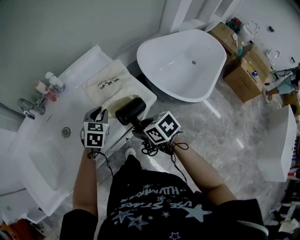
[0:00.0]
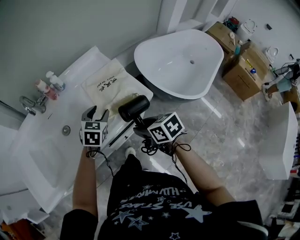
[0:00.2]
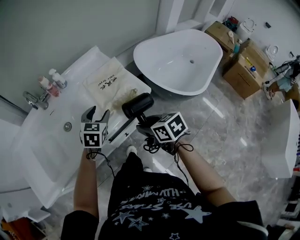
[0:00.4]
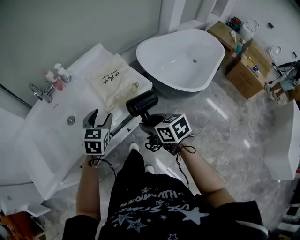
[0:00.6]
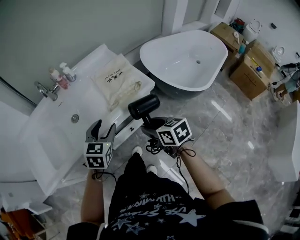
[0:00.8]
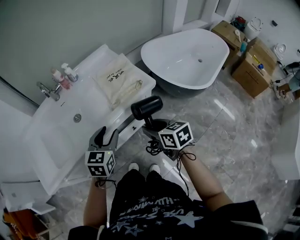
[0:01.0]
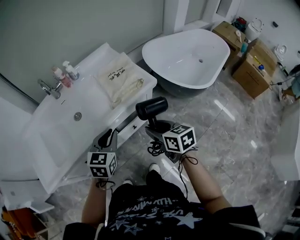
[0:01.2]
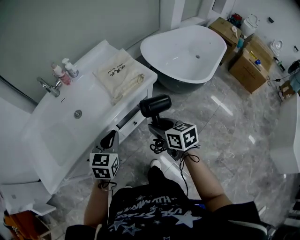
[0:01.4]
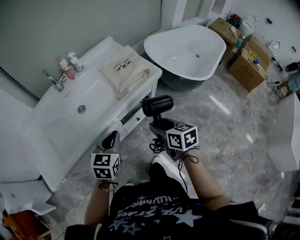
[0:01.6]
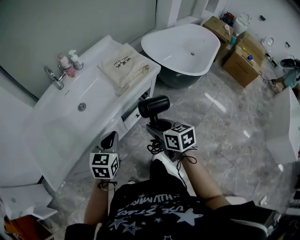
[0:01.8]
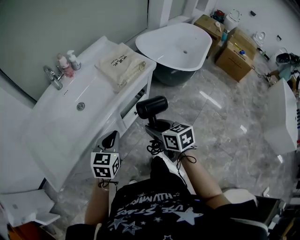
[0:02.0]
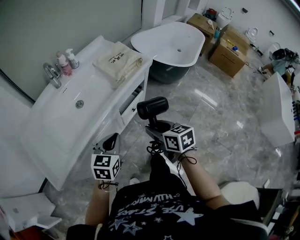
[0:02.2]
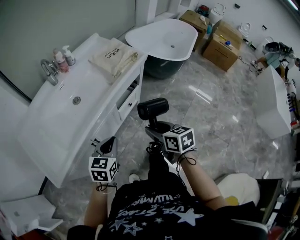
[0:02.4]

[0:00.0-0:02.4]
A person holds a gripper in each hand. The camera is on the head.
0:00.0 to 0:01.2: The left gripper travels backward by about 25 cm, and opens, then closes again. Meanwhile the right gripper shifts approximately 15 cm backward, and rotates approximately 30 degrees.
0:01.2 to 0:02.4: The two grippers go some 25 cm backward and to the left.

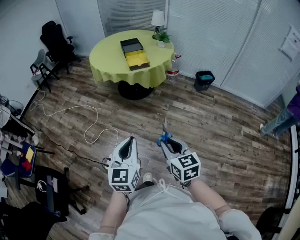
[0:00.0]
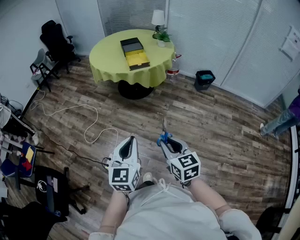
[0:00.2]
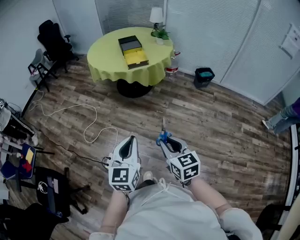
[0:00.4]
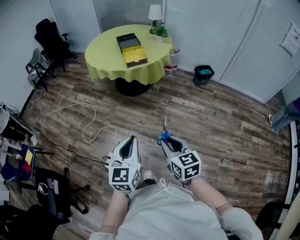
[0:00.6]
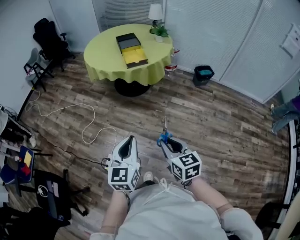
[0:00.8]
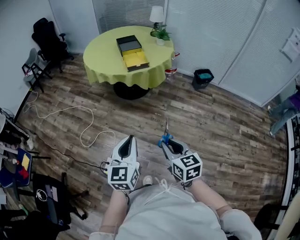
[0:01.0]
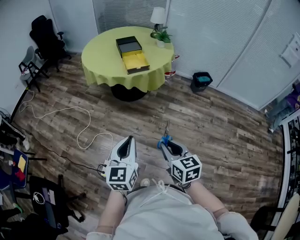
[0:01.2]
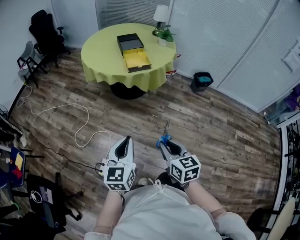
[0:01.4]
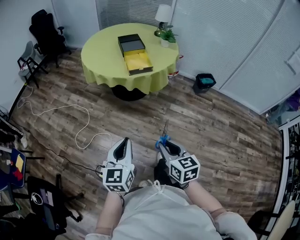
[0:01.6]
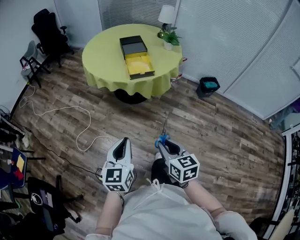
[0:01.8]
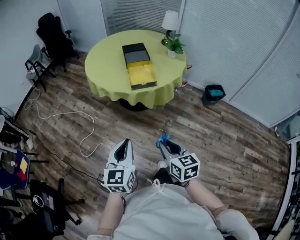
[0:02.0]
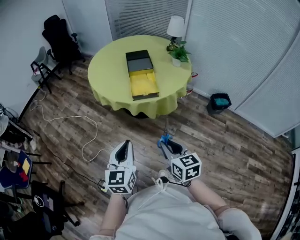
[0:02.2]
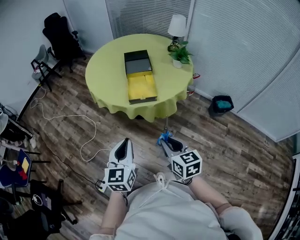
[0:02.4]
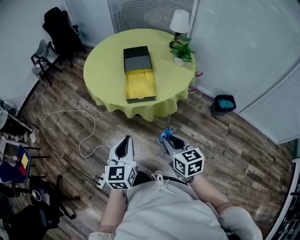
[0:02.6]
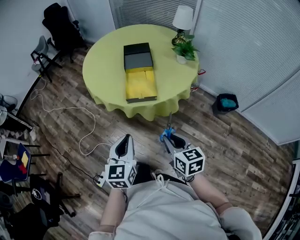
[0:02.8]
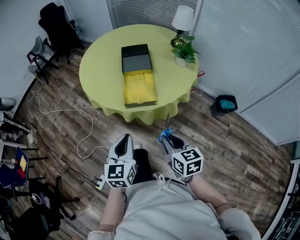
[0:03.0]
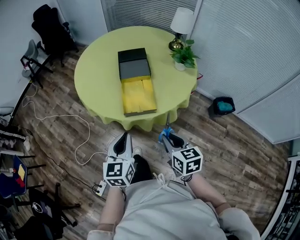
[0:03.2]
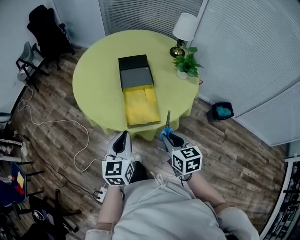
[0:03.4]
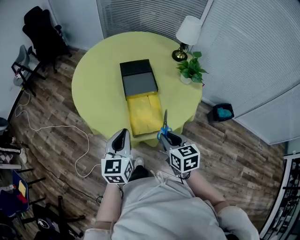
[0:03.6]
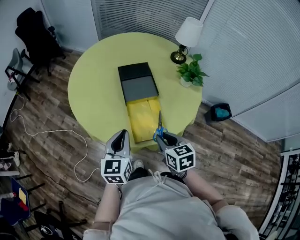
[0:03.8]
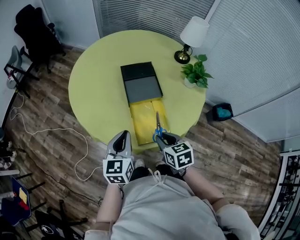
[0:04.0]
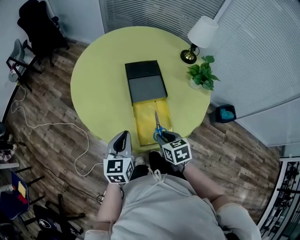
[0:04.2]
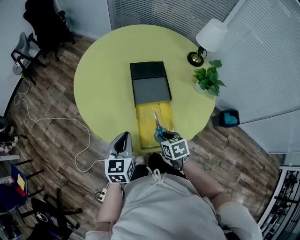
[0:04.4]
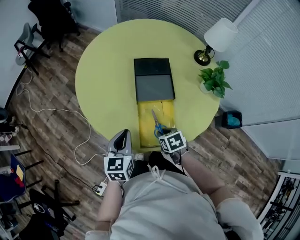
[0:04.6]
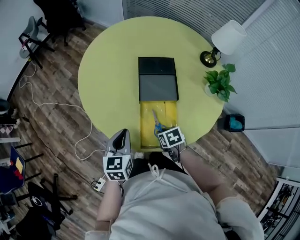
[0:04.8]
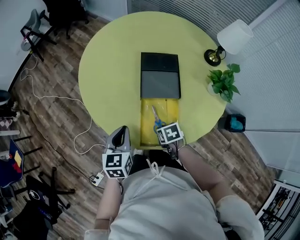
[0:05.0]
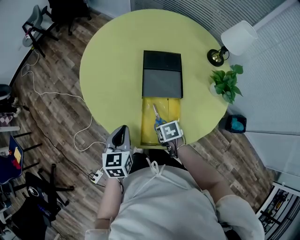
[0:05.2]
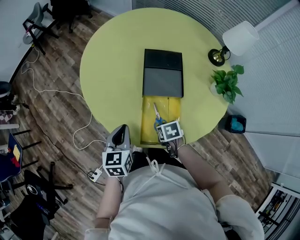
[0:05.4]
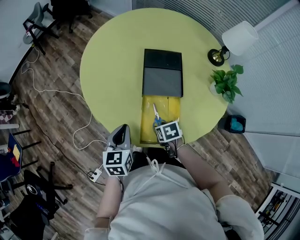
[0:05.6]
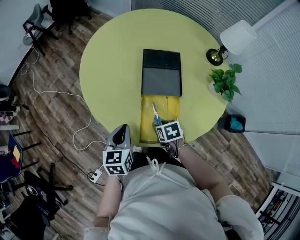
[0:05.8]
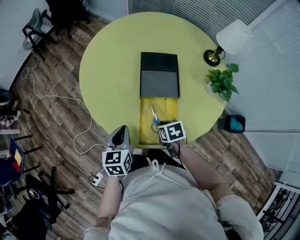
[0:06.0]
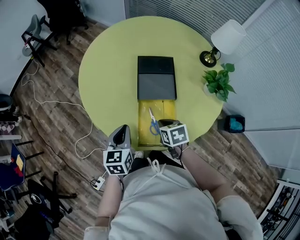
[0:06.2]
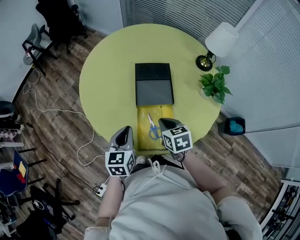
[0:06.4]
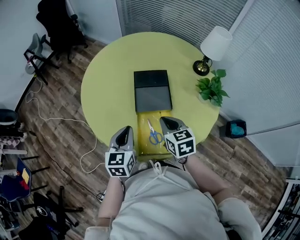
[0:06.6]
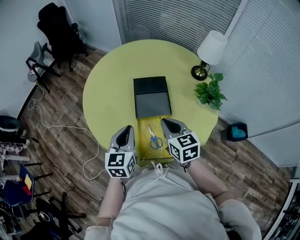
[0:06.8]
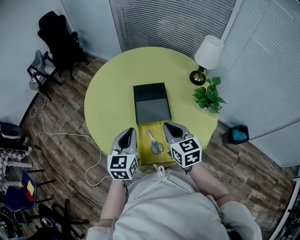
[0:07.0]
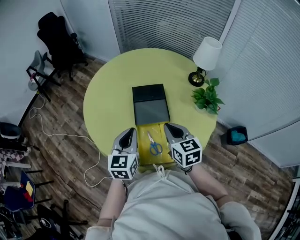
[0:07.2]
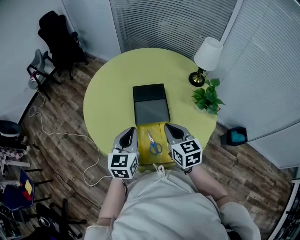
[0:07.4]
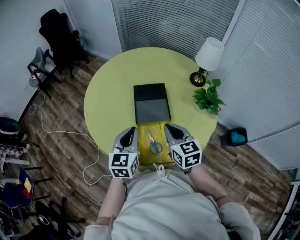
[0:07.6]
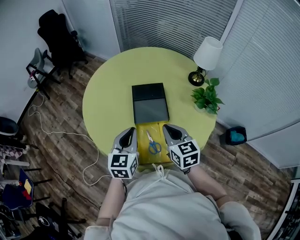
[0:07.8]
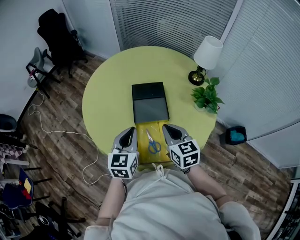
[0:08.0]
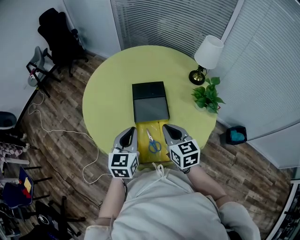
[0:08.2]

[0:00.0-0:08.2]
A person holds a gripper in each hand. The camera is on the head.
0:00.0 to 0:01.6: The two grippers go approximately 20 cm forward.
0:01.6 to 0:03.2: The two grippers travel together, forward and to the right, approximately 50 cm.
0:03.2 to 0:05.0: The right gripper moves roughly 35 cm, and points its fingers about 40 degrees further downward, while the left gripper shifts by roughly 30 cm.
0:05.0 to 0:06.6: The left gripper moves upward, some 5 cm; the right gripper is displaced upward by approximately 20 cm, tips its fingers upward by approximately 40 degrees, and opens, then closes once more.
0:06.6 to 0:08.2: The right gripper changes place by some 5 cm. The left gripper shifts by some 5 cm.

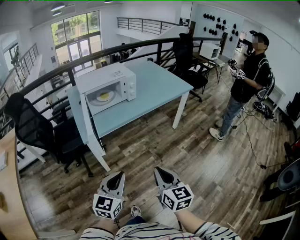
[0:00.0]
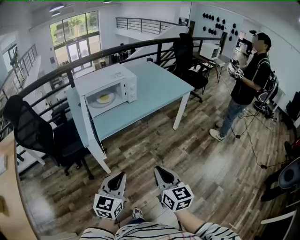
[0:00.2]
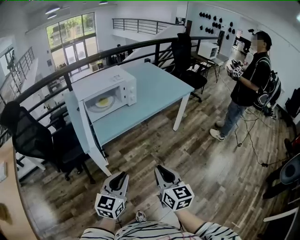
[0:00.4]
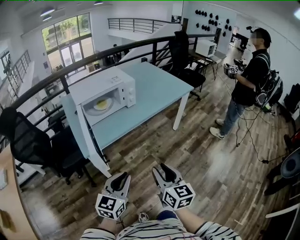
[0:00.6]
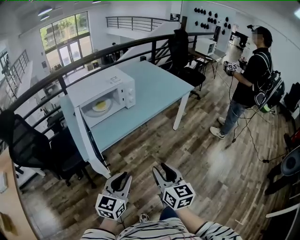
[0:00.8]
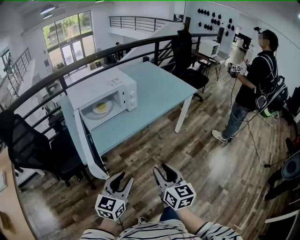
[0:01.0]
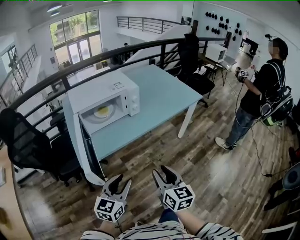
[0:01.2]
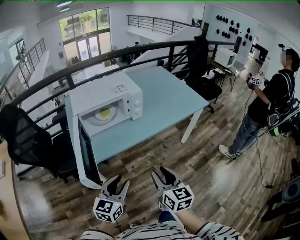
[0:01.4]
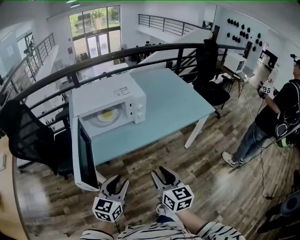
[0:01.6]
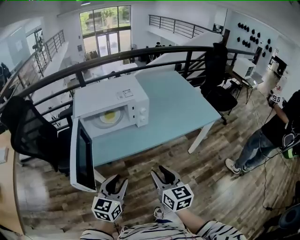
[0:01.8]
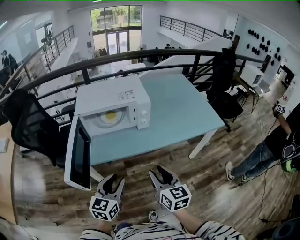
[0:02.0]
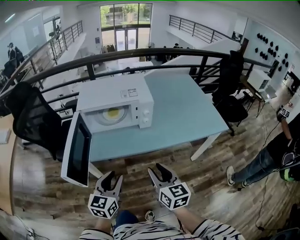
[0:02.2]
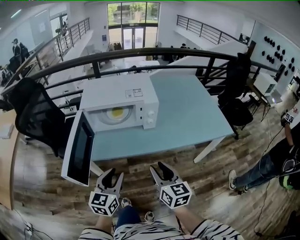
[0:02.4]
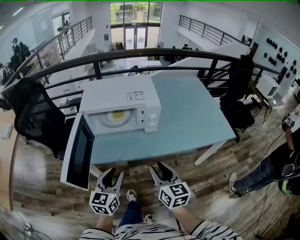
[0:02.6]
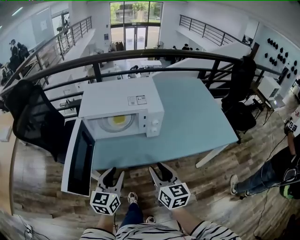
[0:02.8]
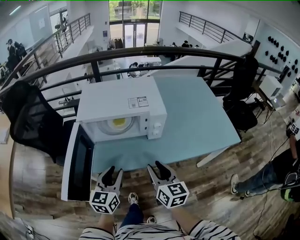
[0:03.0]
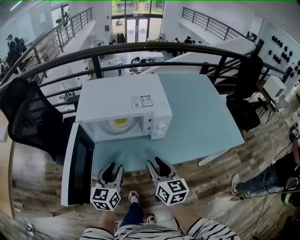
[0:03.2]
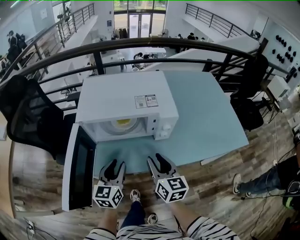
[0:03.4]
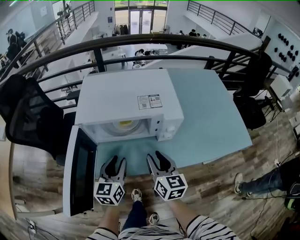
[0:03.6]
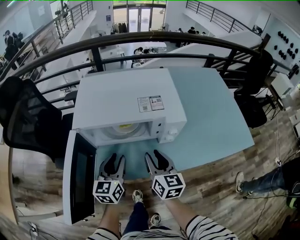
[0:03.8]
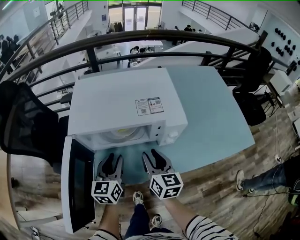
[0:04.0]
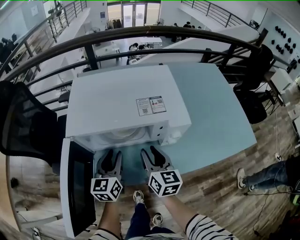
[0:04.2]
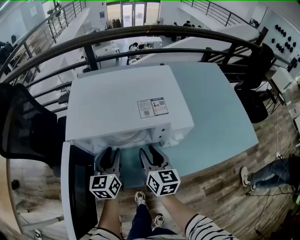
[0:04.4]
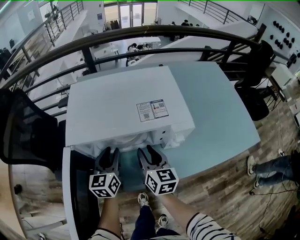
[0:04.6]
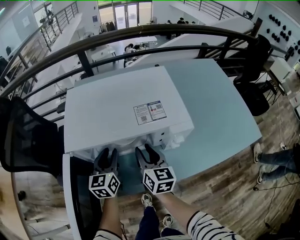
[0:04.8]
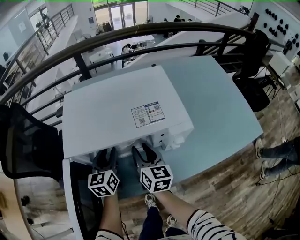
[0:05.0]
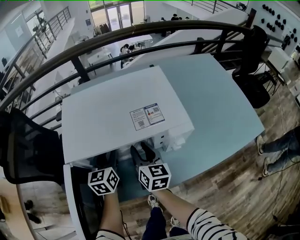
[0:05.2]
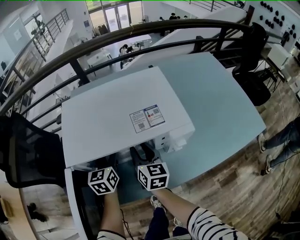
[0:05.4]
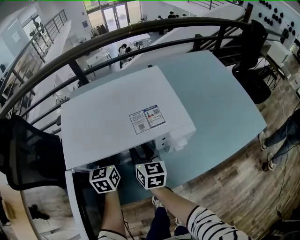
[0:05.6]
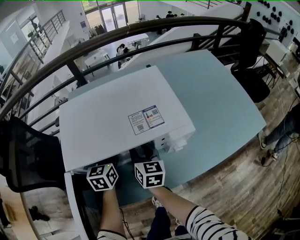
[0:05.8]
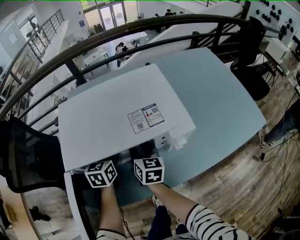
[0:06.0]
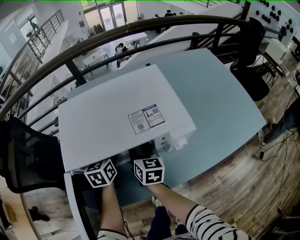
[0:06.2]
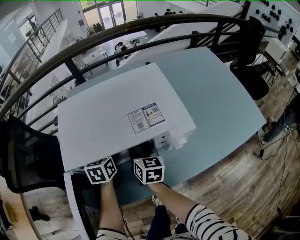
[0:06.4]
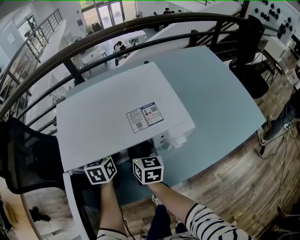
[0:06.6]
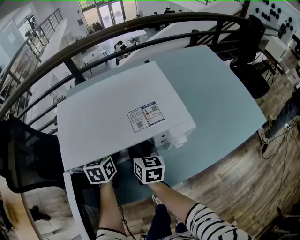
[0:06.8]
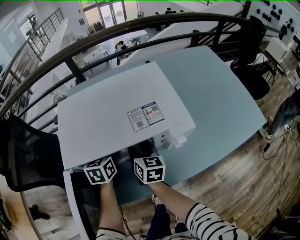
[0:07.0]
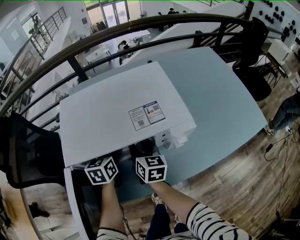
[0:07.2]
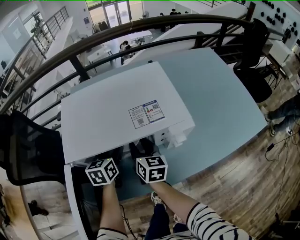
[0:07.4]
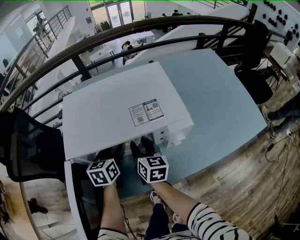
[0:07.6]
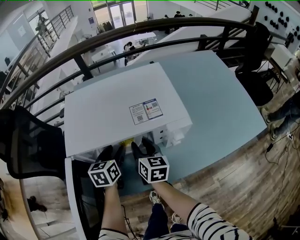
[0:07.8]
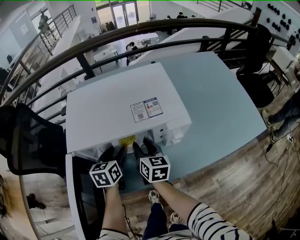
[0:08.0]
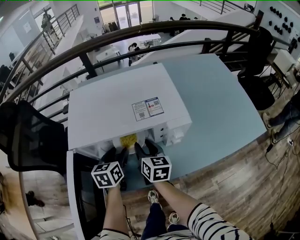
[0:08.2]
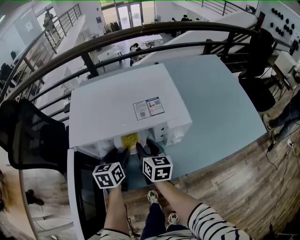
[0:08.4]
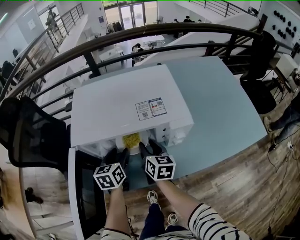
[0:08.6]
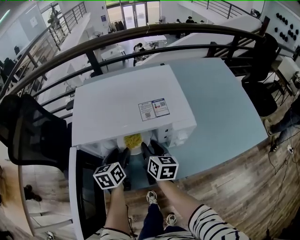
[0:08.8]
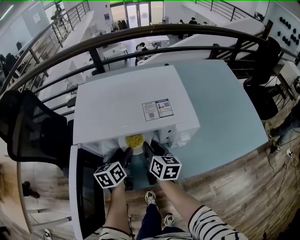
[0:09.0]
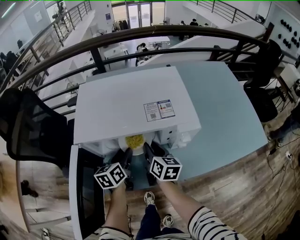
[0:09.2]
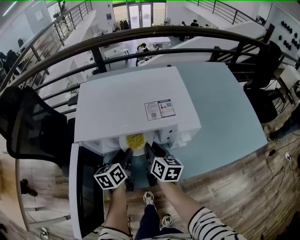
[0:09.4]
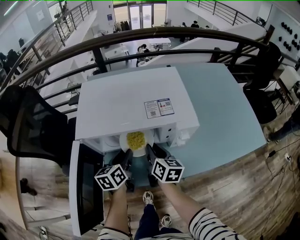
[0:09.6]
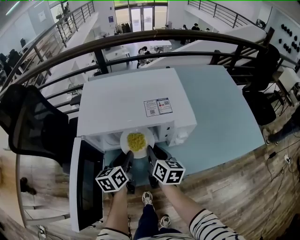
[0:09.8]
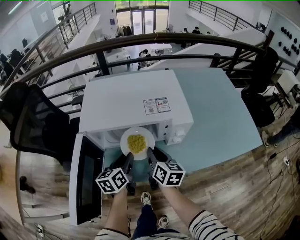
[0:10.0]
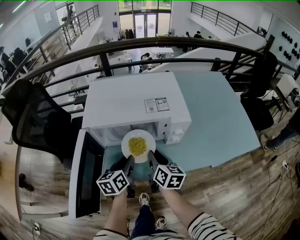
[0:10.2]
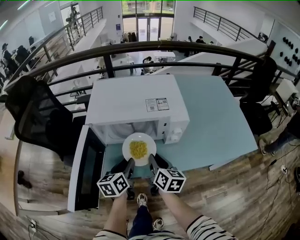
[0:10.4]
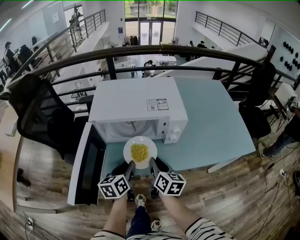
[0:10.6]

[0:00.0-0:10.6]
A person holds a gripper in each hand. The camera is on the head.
0:00.0 to 0:01.6: Both grippers move forward, approximately 30 cm. The left gripper opens its fingers. Meanwhile the right gripper opens its fingers.
0:01.6 to 0:03.0: The two grippers go approximately 20 cm forward. The left gripper rotates some 20 degrees.
0:03.0 to 0:04.6: The left gripper moves forward, roughly 25 cm, while the right gripper heads forward and downward, covering approximately 25 cm.
0:04.6 to 0:06.0: The grippers both shift forward by some 10 cm.
0:06.0 to 0:07.6: There are only small adjustments of the grippers.
0:07.6 to 0:09.0: There are only small adjustments of the grippers.
0:09.0 to 0:10.6: The two grippers go about 15 cm backward. The left gripper closes up.

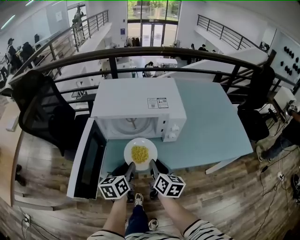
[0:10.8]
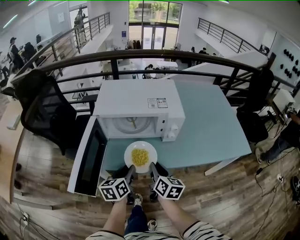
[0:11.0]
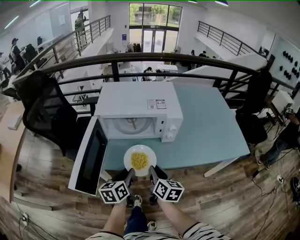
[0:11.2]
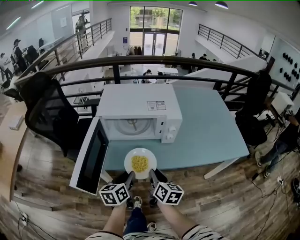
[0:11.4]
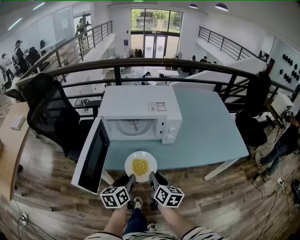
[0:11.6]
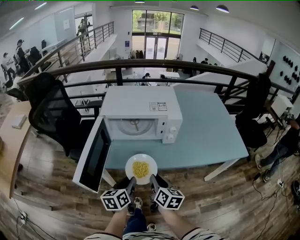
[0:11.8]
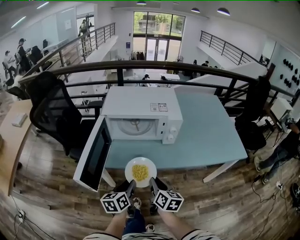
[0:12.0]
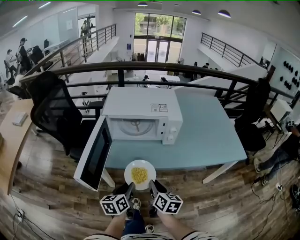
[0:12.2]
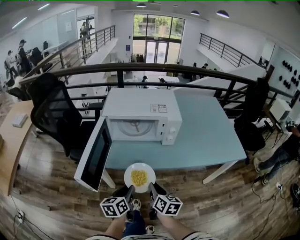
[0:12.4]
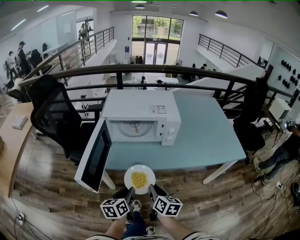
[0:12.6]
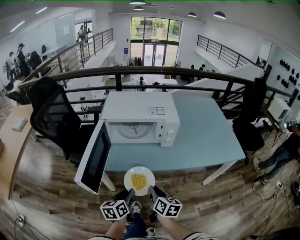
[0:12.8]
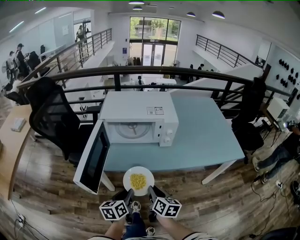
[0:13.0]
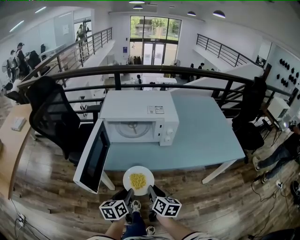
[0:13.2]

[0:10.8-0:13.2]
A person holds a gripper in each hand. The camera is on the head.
0:10.8 to 0:12.0: Both grippers travel together backward, roughly 15 cm.
0:12.0 to 0:13.2: The grippers move only a little.
